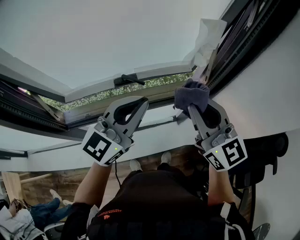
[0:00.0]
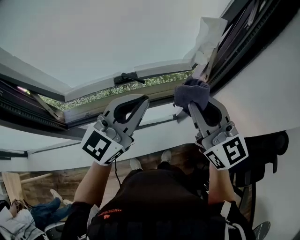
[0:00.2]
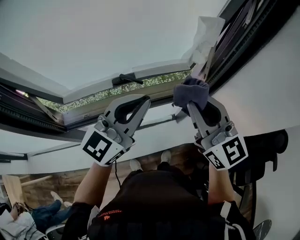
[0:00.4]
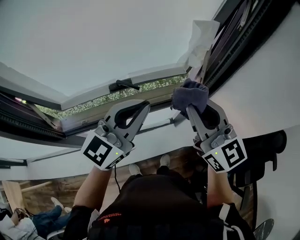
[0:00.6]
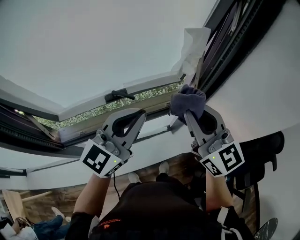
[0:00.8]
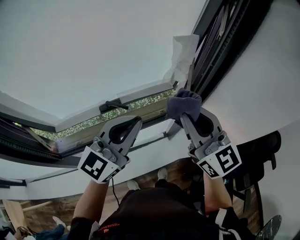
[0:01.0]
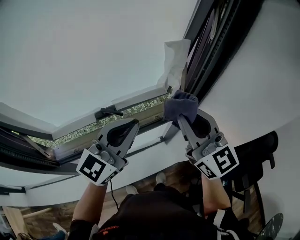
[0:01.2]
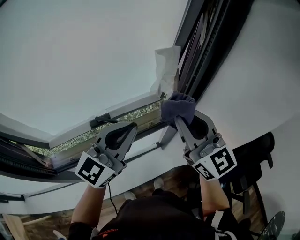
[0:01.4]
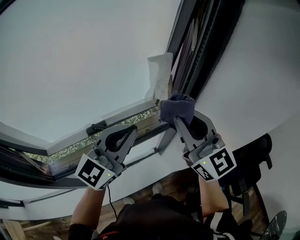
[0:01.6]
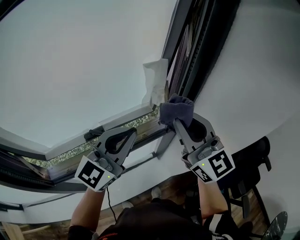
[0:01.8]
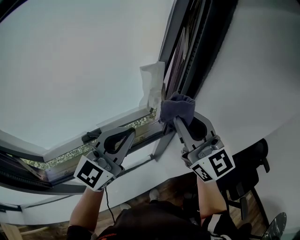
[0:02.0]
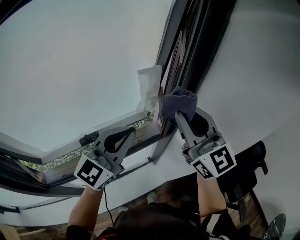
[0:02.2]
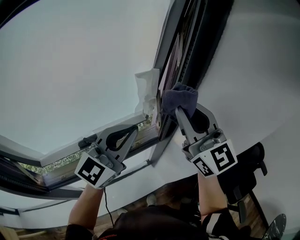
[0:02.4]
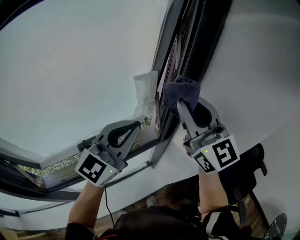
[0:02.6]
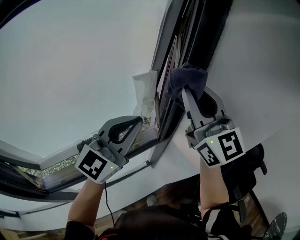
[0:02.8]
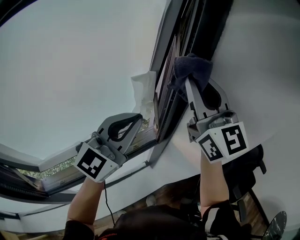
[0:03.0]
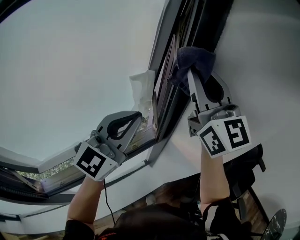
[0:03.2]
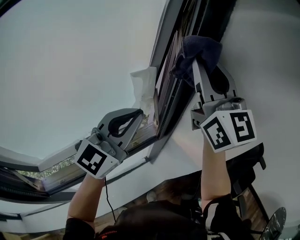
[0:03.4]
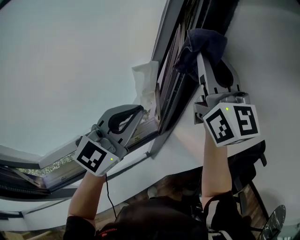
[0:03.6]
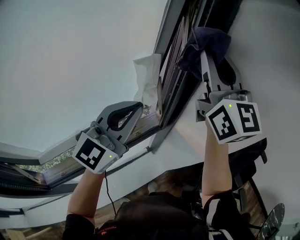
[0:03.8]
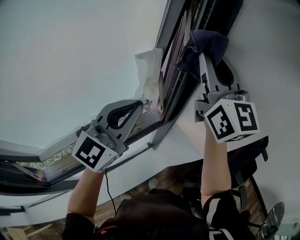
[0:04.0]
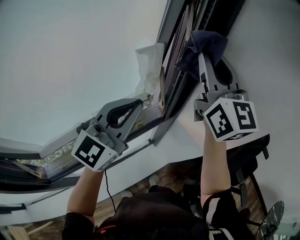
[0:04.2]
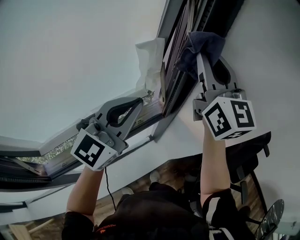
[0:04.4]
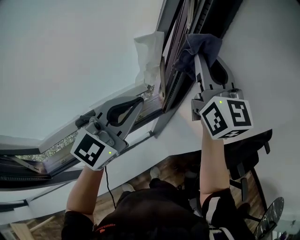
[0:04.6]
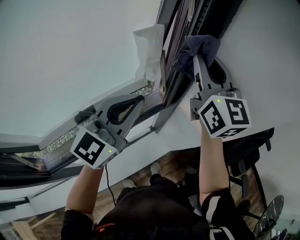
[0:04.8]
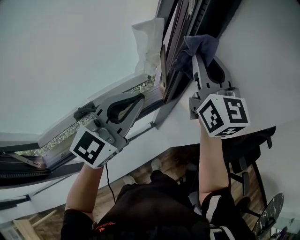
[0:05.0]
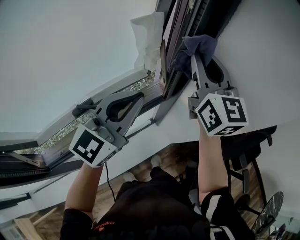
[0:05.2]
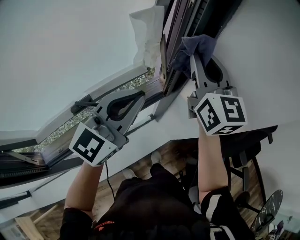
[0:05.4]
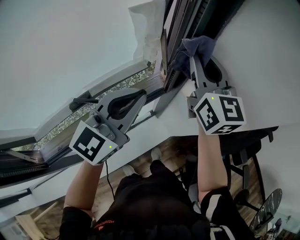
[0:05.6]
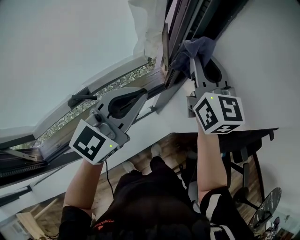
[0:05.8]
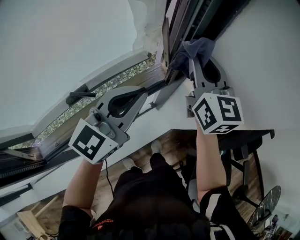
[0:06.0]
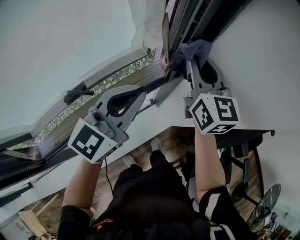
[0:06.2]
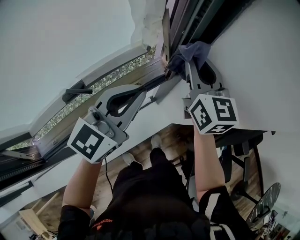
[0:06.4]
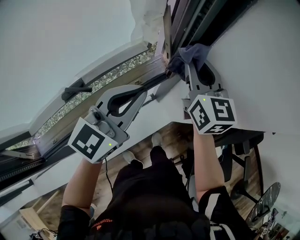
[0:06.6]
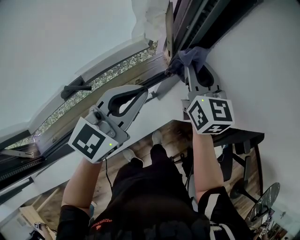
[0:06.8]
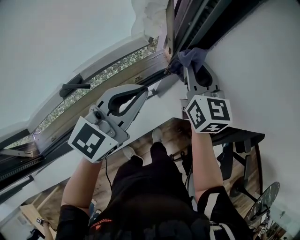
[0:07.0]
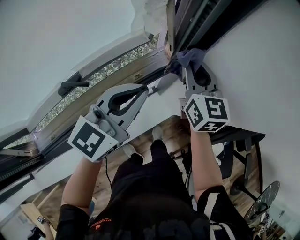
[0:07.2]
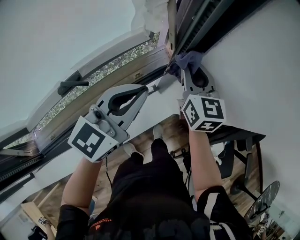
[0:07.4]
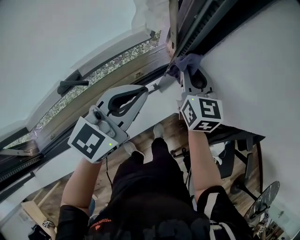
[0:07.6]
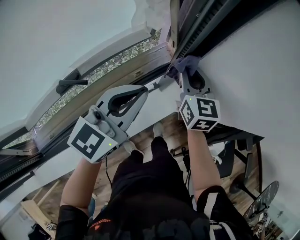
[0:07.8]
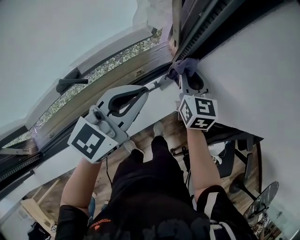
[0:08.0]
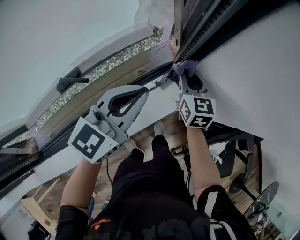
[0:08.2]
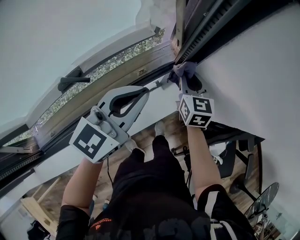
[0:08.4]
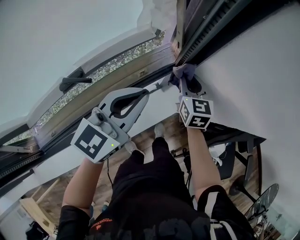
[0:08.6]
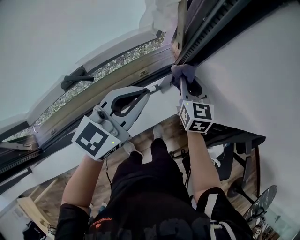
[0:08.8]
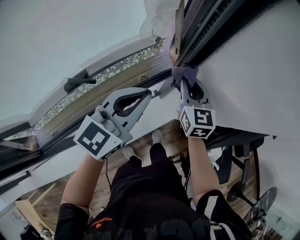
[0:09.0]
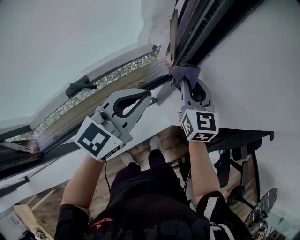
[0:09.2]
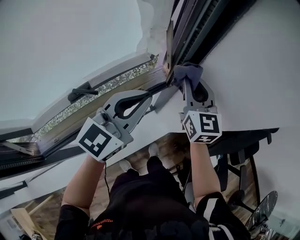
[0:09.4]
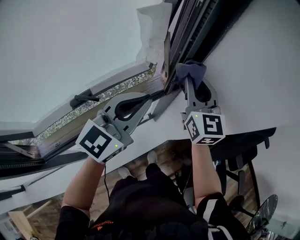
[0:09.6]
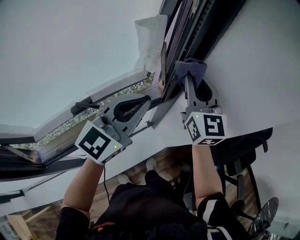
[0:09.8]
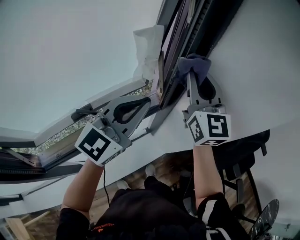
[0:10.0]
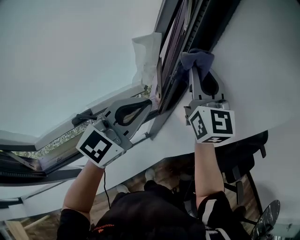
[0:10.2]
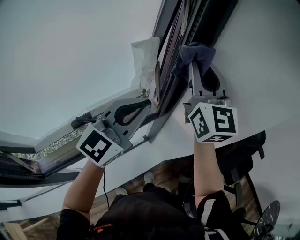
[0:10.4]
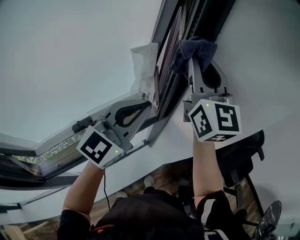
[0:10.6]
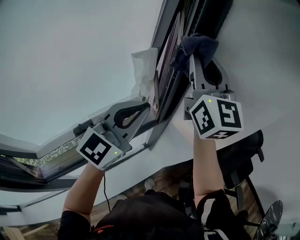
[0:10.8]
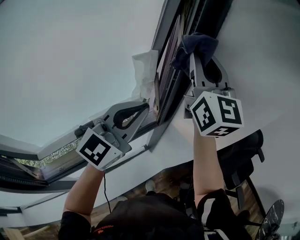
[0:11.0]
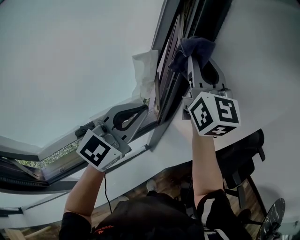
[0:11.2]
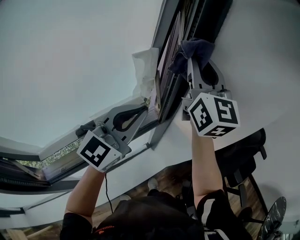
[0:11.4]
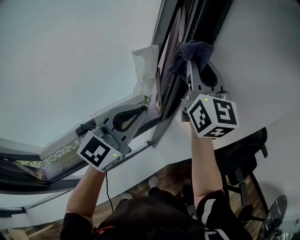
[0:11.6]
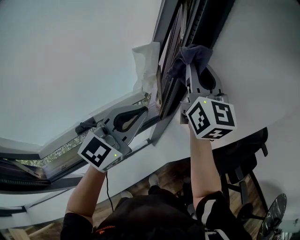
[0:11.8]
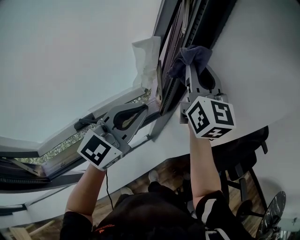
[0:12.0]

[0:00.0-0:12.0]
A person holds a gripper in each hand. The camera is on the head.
0:00.0 to 0:01.6: The left gripper heads to the right and forward, covering some 10 cm. Meanwhile the right gripper is displaced to the right, upward and forward by about 10 cm.
0:01.6 to 0:03.0: The left gripper goes roughly 10 cm forward, upward and to the right, while the right gripper moves upward, forward and to the right, approximately 15 cm.
0:03.0 to 0:04.4: The right gripper shifts by some 5 cm.
0:04.4 to 0:06.0: The right gripper goes about 20 cm downward; the left gripper shifts some 10 cm downward.
0:06.0 to 0:07.6: The left gripper moves downward, about 10 cm; the right gripper moves downward, approximately 20 cm.
0:07.6 to 0:09.0: The right gripper reaches roughly 10 cm downward, then returns.
0:09.0 to 0:10.4: The right gripper heads upward, covering some 35 cm, and angles its fingers upward, by some 30 degrees. Meanwhile the left gripper shifts approximately 15 cm upward.
0:10.4 to 0:12.0: The right gripper travels upward and back again, some 5 cm each way.

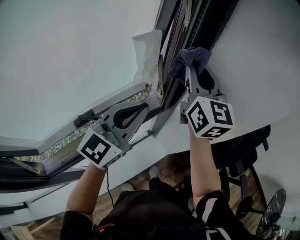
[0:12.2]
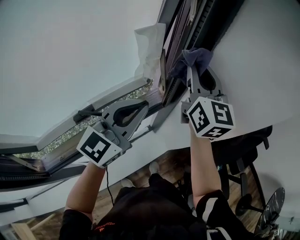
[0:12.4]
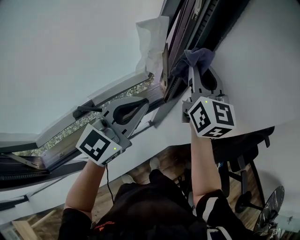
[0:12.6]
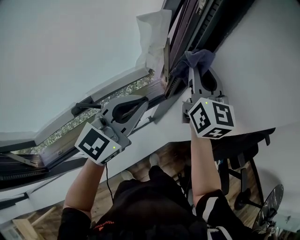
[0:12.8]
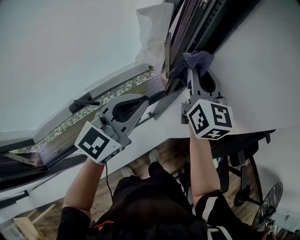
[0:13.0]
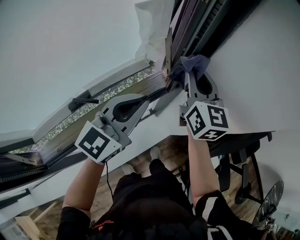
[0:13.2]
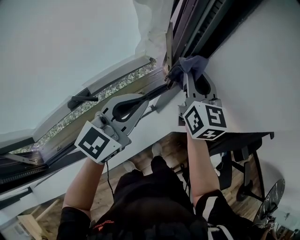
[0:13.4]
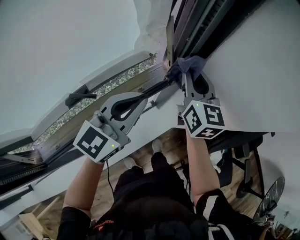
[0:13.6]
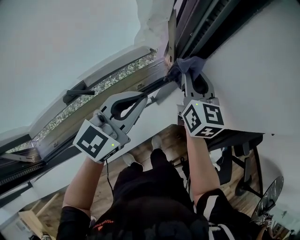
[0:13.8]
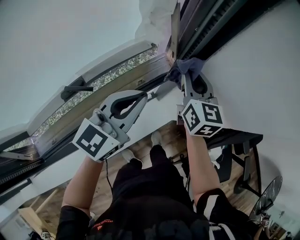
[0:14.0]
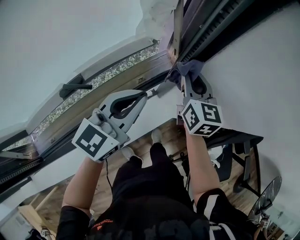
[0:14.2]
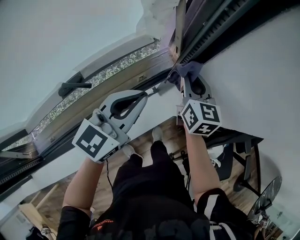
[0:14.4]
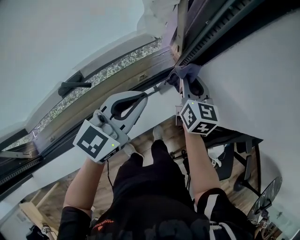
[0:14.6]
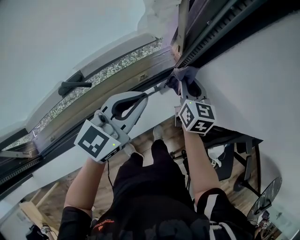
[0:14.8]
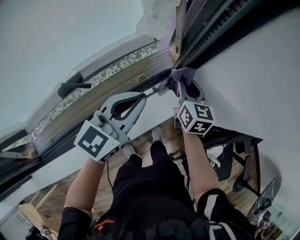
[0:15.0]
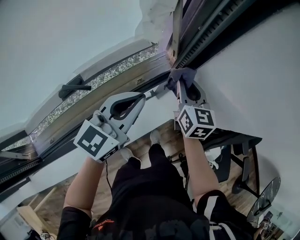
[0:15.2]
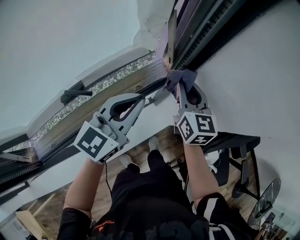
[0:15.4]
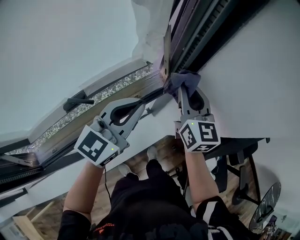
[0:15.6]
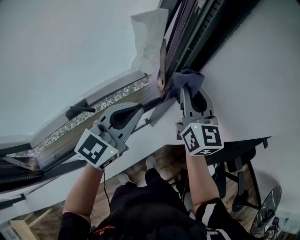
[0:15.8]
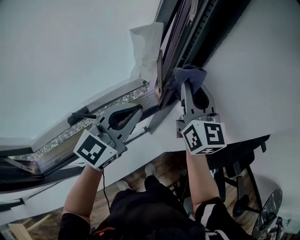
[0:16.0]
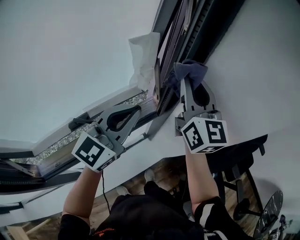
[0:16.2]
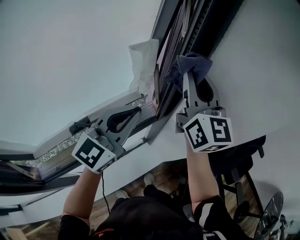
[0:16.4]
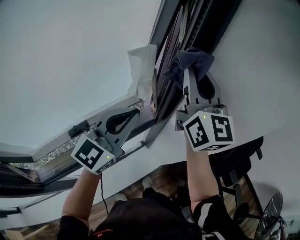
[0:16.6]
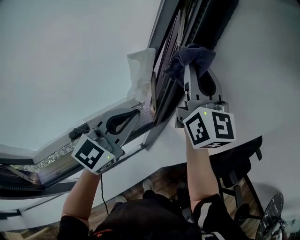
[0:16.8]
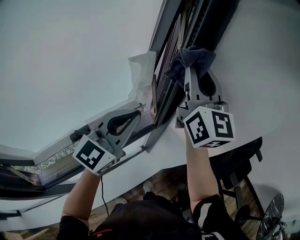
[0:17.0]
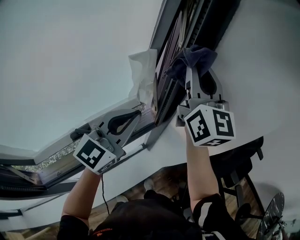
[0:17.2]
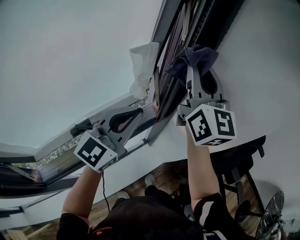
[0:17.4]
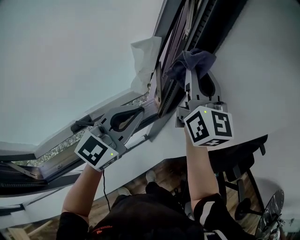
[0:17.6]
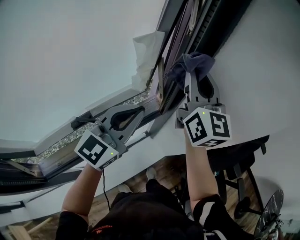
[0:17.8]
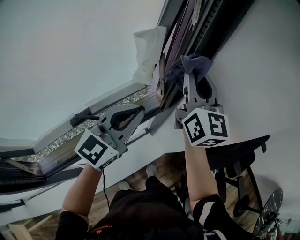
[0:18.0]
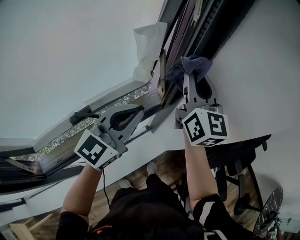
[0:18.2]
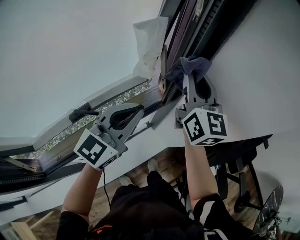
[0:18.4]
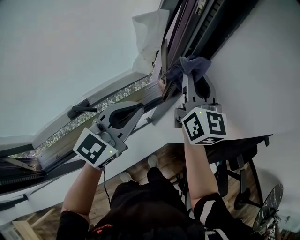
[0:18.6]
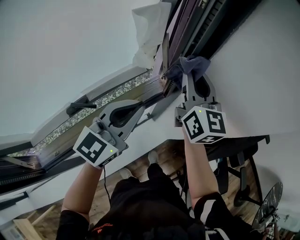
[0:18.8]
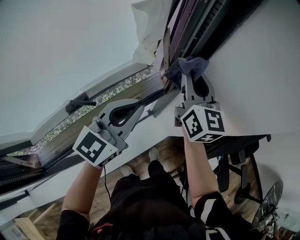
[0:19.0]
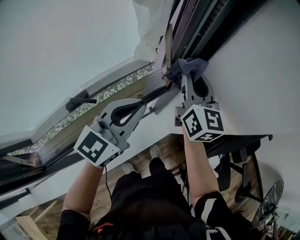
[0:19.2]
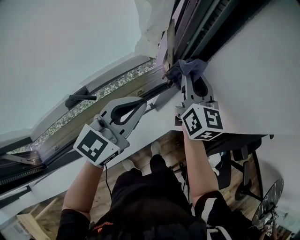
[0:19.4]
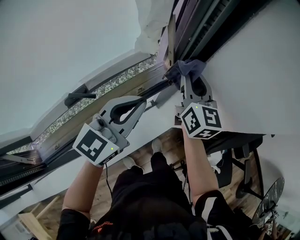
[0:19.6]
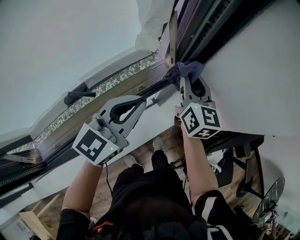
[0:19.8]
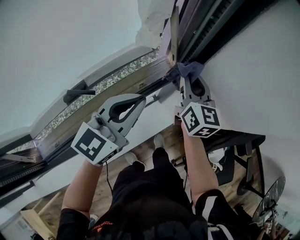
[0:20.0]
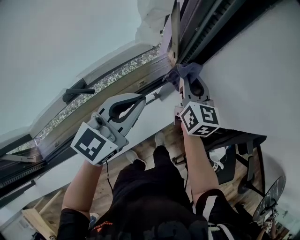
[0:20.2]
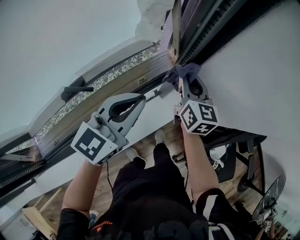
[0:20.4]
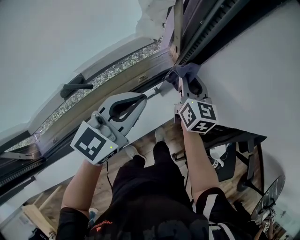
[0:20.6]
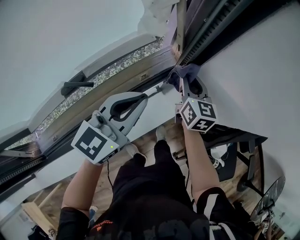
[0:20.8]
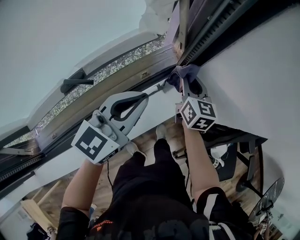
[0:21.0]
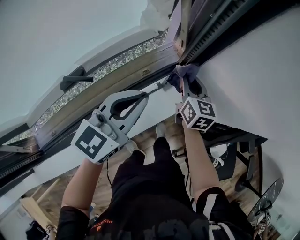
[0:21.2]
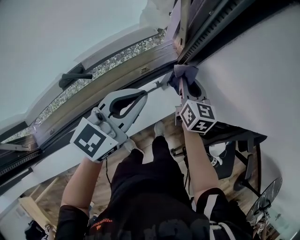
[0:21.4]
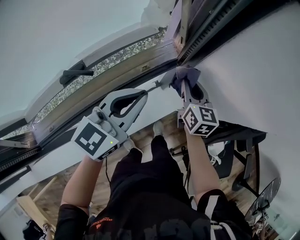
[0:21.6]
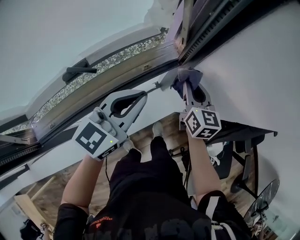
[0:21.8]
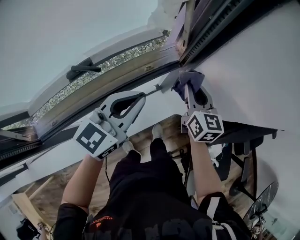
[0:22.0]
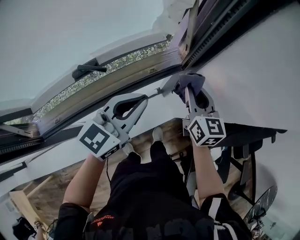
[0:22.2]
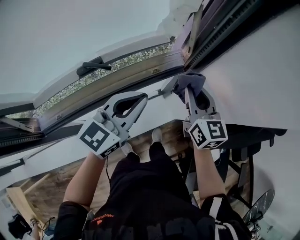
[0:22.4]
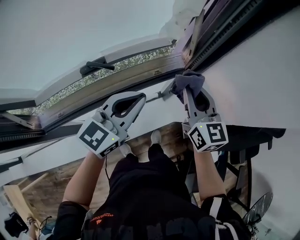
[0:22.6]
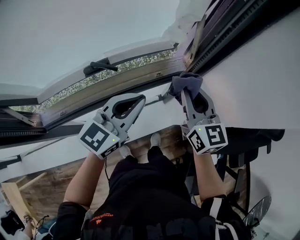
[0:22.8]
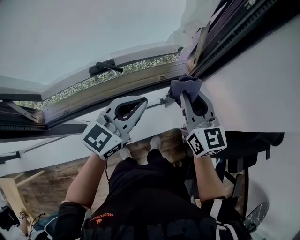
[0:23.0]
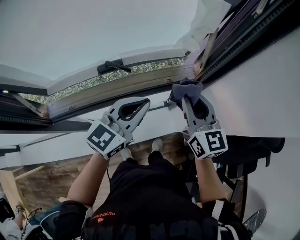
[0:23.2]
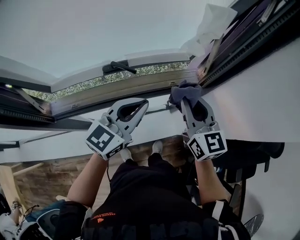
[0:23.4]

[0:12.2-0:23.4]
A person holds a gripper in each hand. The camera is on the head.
0:12.2 to 0:13.8: The right gripper shifts approximately 20 cm downward, while the left gripper moves downward, about 10 cm.
0:13.8 to 0:15.4: The right gripper goes downward and returns, some 15 cm each way.
0:15.4 to 0:17.0: The right gripper shifts some 35 cm upward, and points its fingers some 30 degrees further upward; the left gripper travels upward by approximately 15 cm.
0:17.0 to 0:18.6: The left gripper heads downward, covering approximately 10 cm. Meanwhile the right gripper heads downward, covering roughly 15 cm.
0:18.6 to 0:20.2: The right gripper travels downward by approximately 20 cm, while the left gripper is displaced downward by roughly 10 cm.
0:20.2 to 0:21.8: The right gripper shifts about 10 cm downward and backward.
0:21.8 to 0:23.4: The right gripper is displaced upward, to the left and backward by about 20 cm, and turns by some 30 degrees. Meanwhile the left gripper heads to the left and backward, covering approximately 10 cm.
